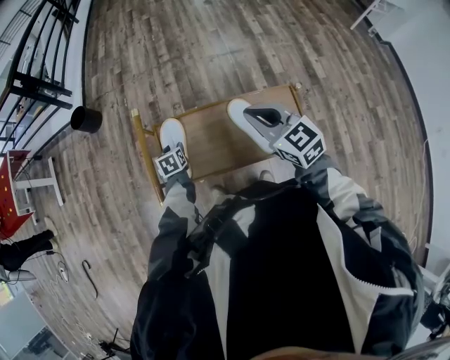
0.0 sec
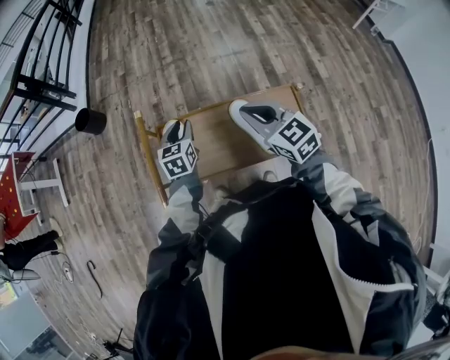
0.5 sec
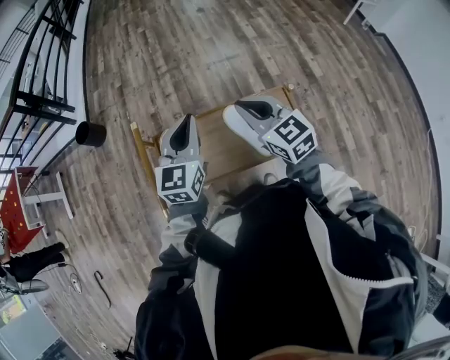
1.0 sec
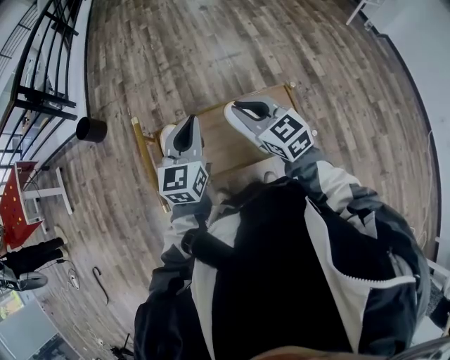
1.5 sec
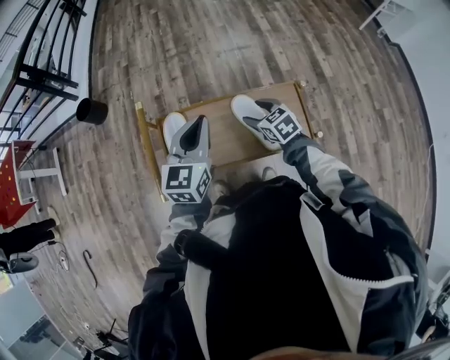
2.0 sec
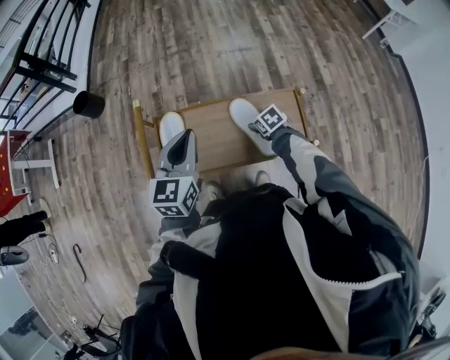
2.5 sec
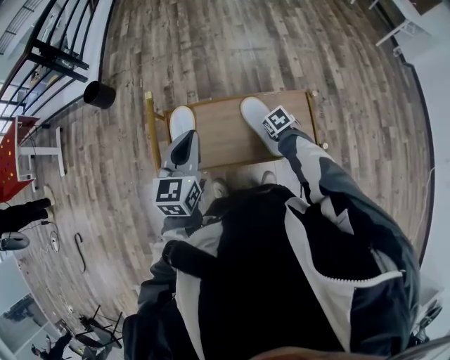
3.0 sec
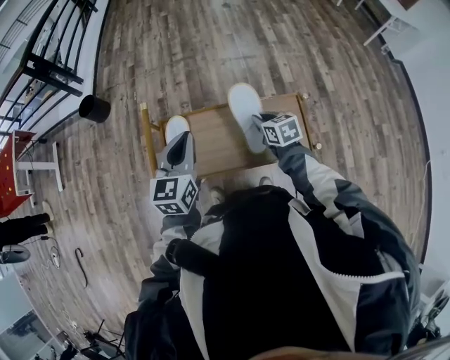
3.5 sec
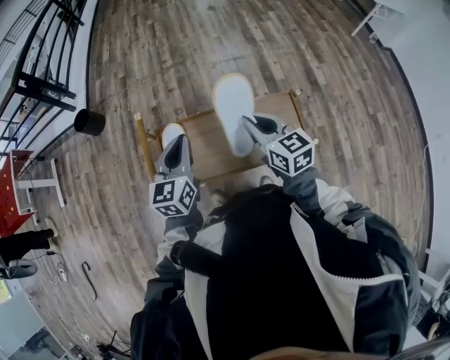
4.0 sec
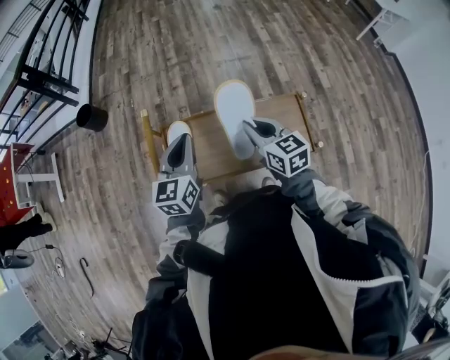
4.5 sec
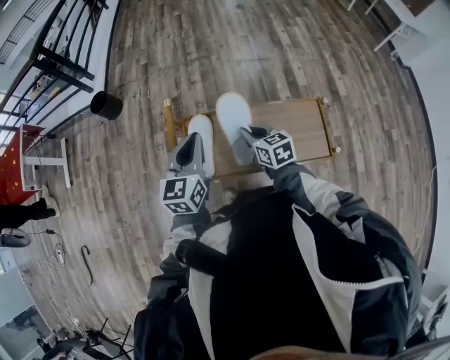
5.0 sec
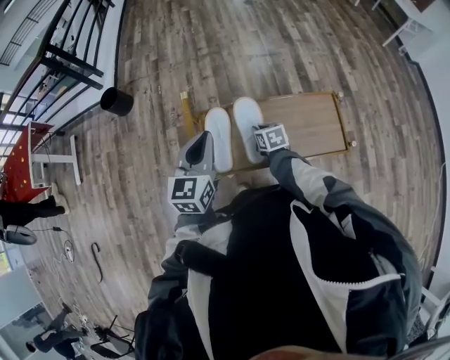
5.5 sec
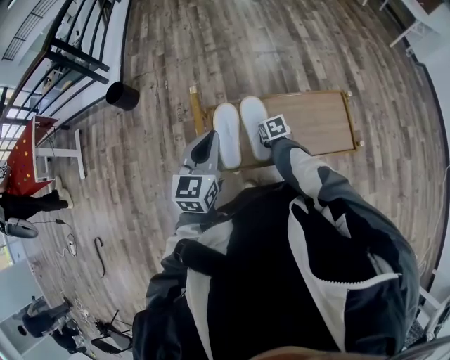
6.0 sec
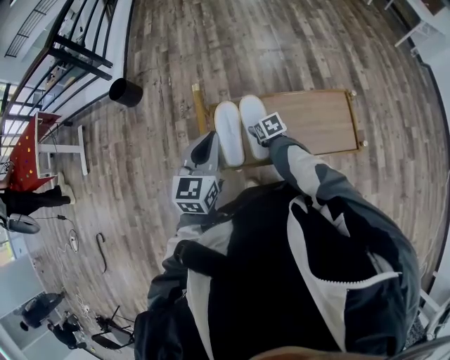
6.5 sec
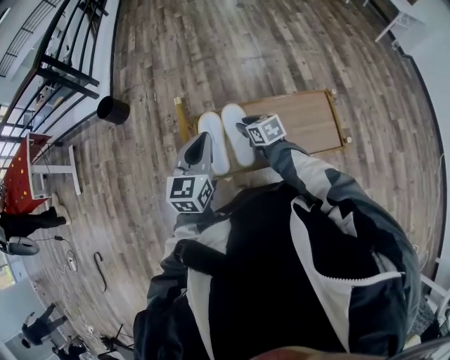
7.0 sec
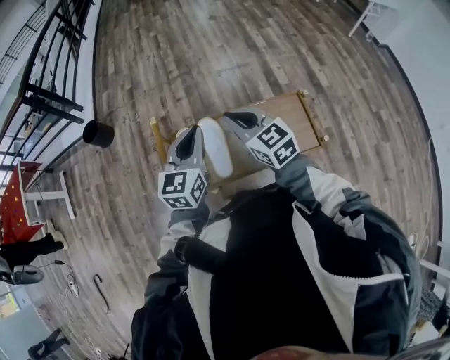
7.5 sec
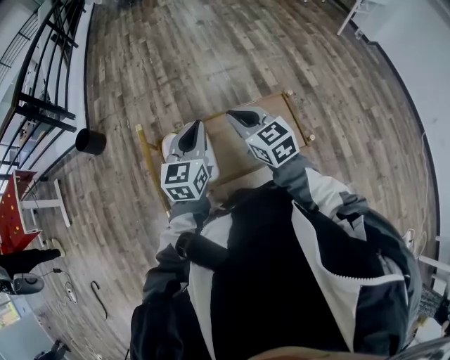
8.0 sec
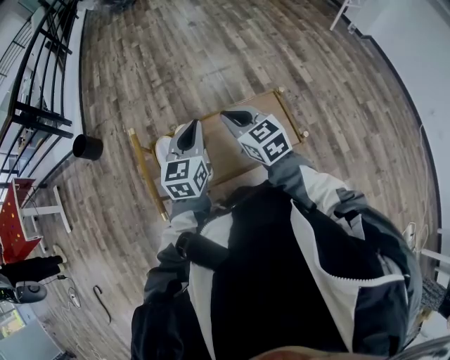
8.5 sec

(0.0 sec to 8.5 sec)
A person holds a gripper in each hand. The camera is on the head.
0.0 sec - 2.0 sec: The left gripper travels upward and to the right by about 35 cm, points its fingers some 40 degrees further upward, and closes its fingers; the right gripper moves downward, roughly 15 cm, swivels roughly 20 degrees, and opens.
2.0 sec - 4.0 sec: The right gripper goes about 15 cm upward, turns by approximately 30 degrees, and closes its fingers. The left gripper moves to the left, approximately 5 cm.
4.0 sec - 6.5 sec: The left gripper is displaced to the left by approximately 10 cm. Meanwhile the right gripper travels downward and to the left by some 35 cm, angles its fingers downward, by about 40 degrees, and opens.
6.5 sec - 8.5 sec: The left gripper goes about 20 cm to the right, while the right gripper is displaced upward and to the right by some 35 cm, tilts its fingers approximately 30 degrees upward, and closes its fingers.

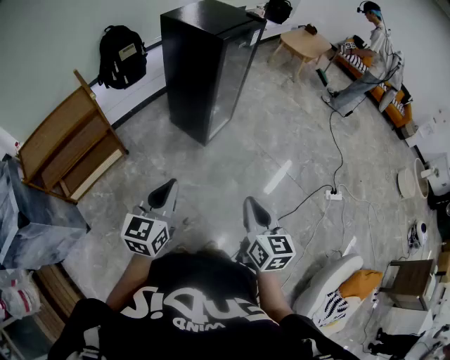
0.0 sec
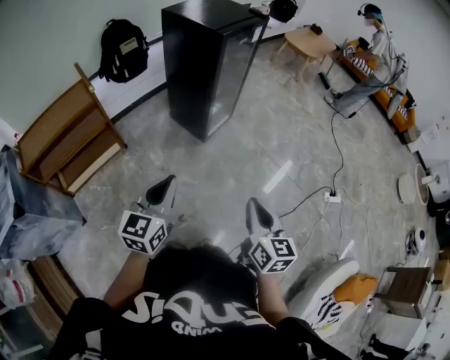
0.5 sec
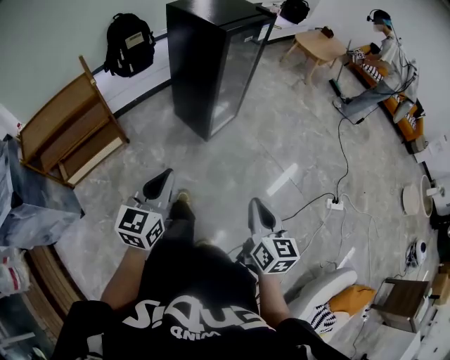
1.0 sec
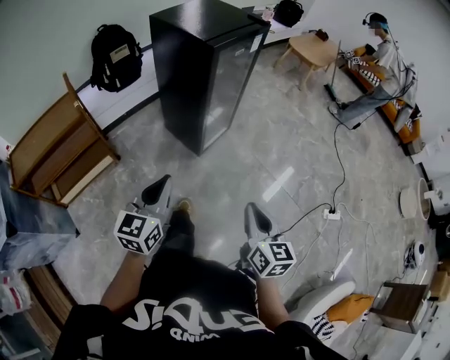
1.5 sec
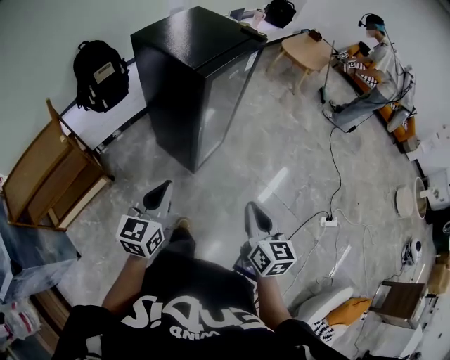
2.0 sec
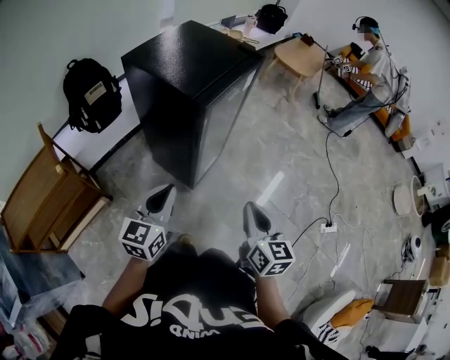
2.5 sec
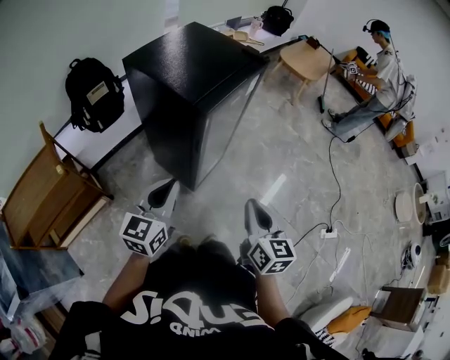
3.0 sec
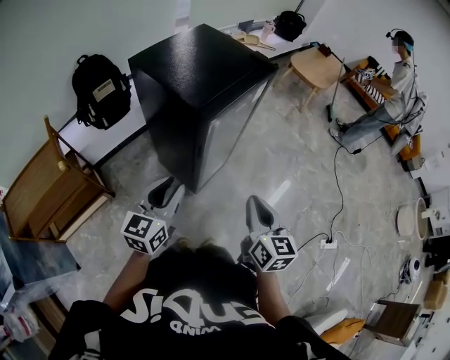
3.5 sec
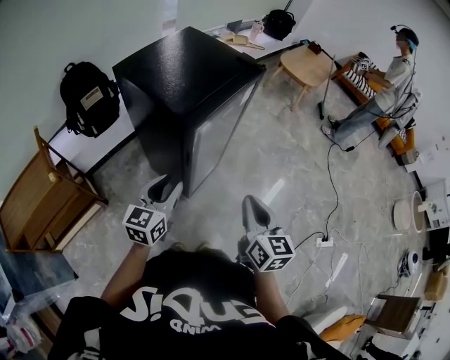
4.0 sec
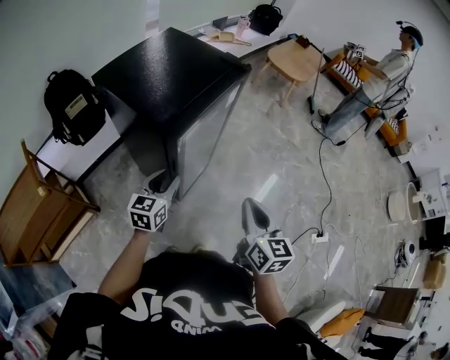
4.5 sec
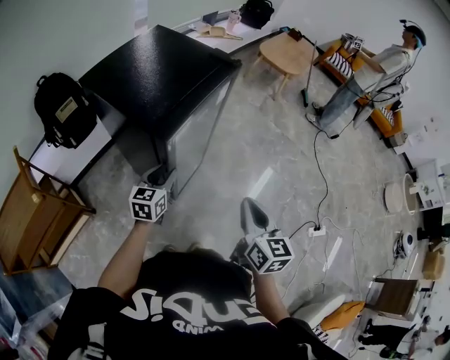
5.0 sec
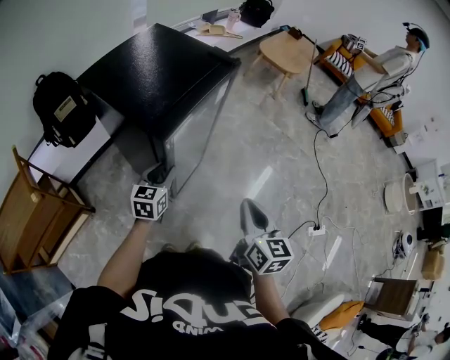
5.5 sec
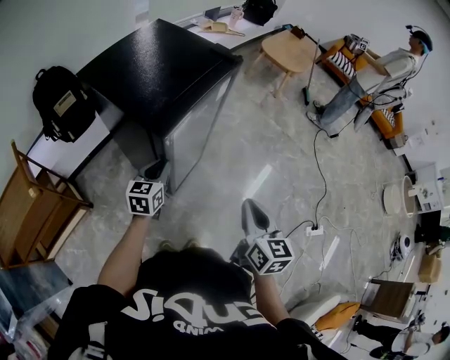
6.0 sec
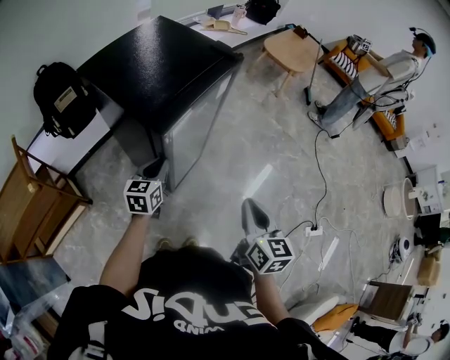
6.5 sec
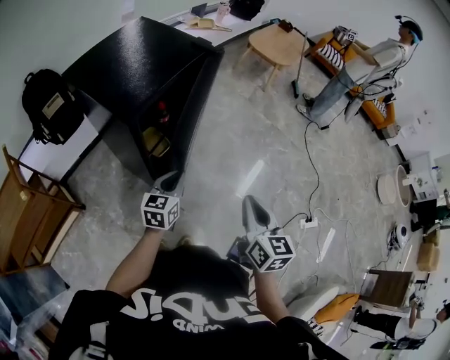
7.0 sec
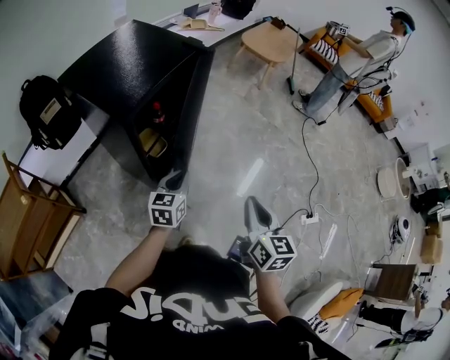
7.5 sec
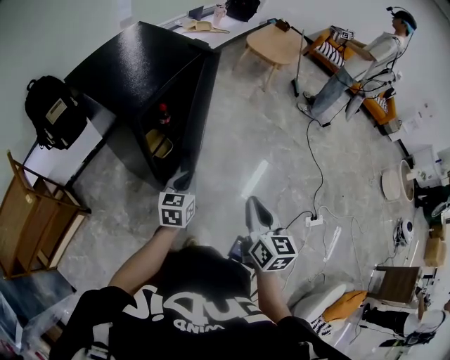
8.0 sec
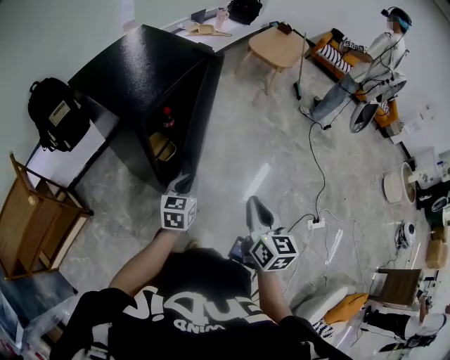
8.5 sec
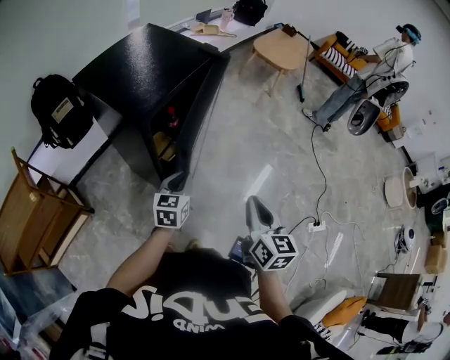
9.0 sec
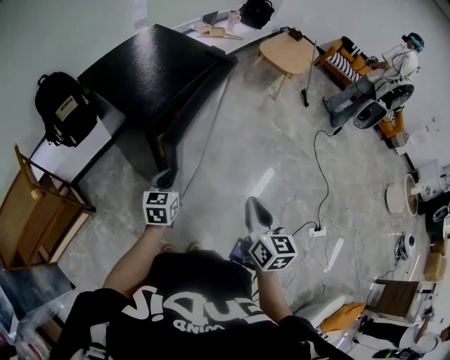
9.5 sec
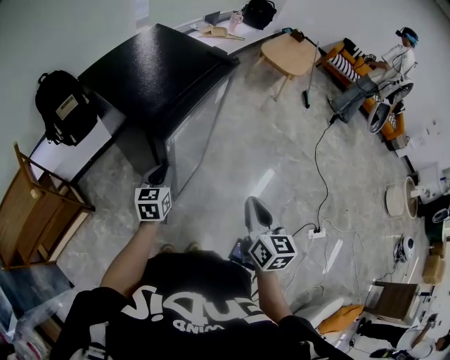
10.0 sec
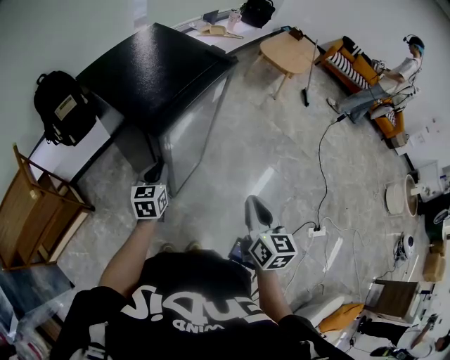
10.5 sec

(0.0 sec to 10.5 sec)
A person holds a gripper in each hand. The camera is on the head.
0.0 sec - 2.0 sec: The two grippers go some 30 cm forward.
2.0 sec - 4.0 sec: Both grippers move forward, approximately 20 cm. The left gripper opens its fingers.
4.0 sec - 6.5 sec: The left gripper moves forward and downward, about 15 cm, and closes its fingers; the right gripper goes some 5 cm to the right.
6.5 sec - 8.5 sec: The left gripper moves to the right, roughly 15 cm.
8.5 sec - 10.5 sec: The left gripper travels to the left by some 15 cm.

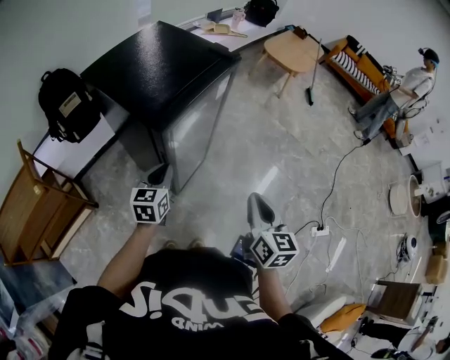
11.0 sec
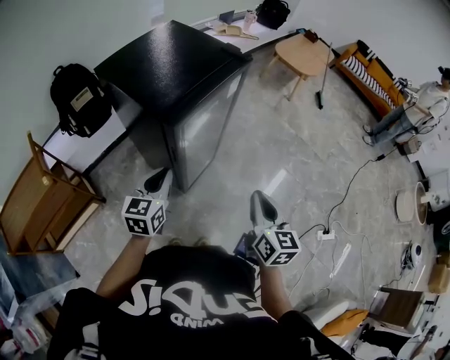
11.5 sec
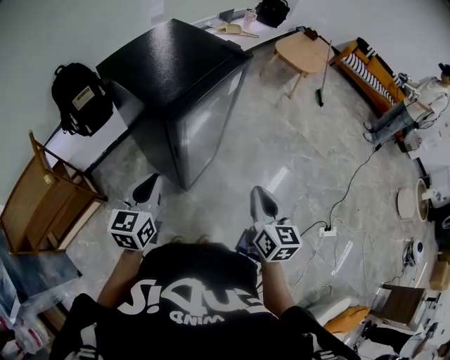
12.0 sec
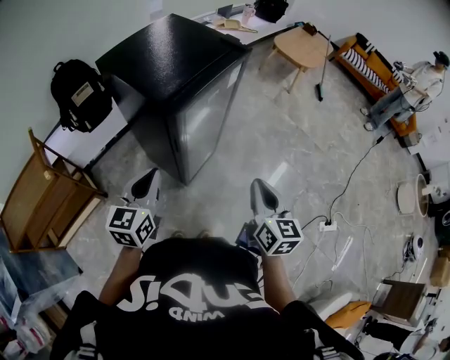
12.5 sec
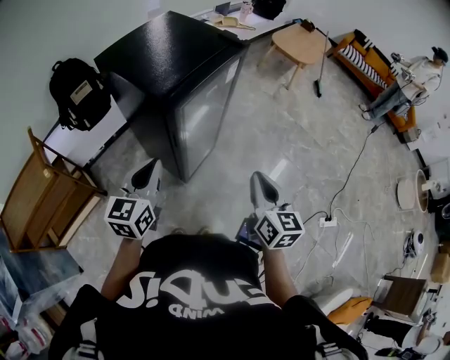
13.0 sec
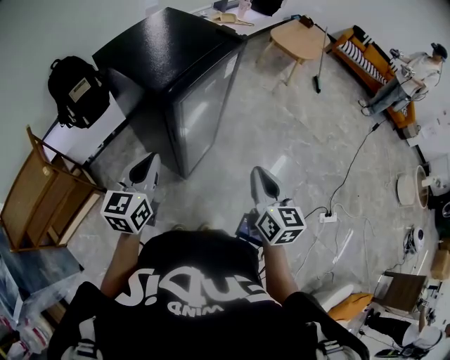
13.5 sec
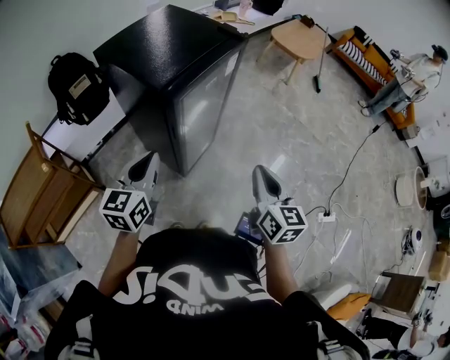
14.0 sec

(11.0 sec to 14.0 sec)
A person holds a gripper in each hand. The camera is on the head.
11.0 sec - 12.5 sec: The left gripper travels backward and upward by roughly 15 cm.
12.5 sec - 14.0 sec: The grippers stay close to where they were, moving slightly.

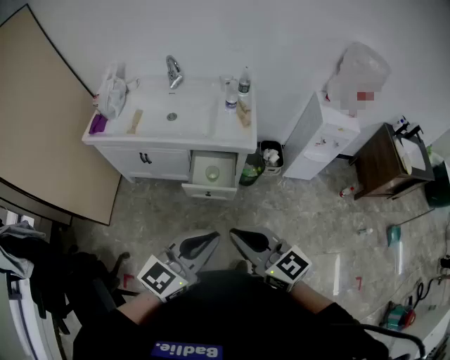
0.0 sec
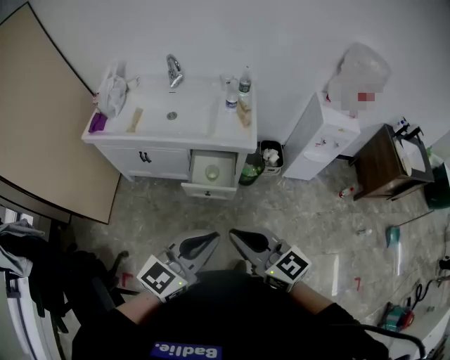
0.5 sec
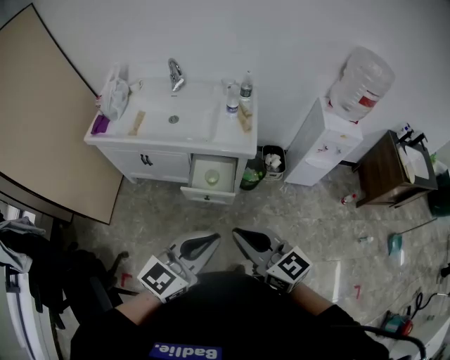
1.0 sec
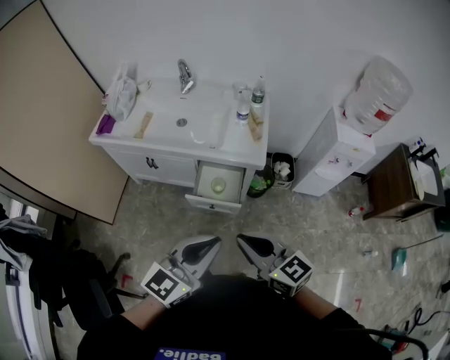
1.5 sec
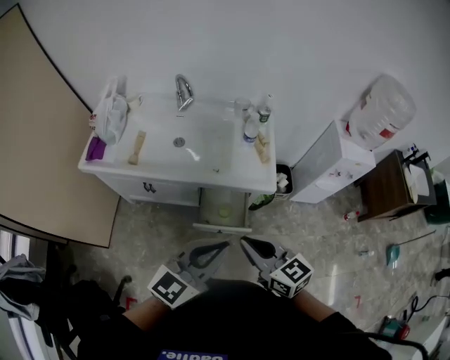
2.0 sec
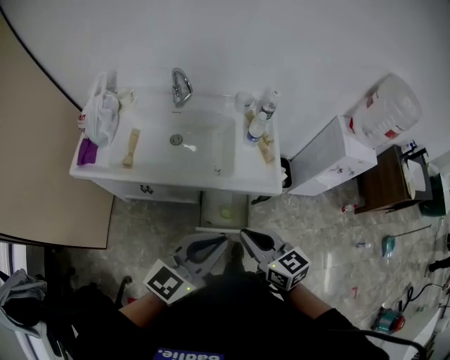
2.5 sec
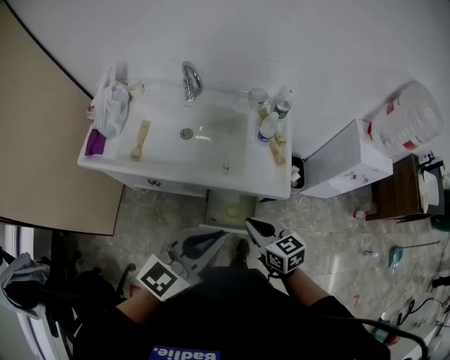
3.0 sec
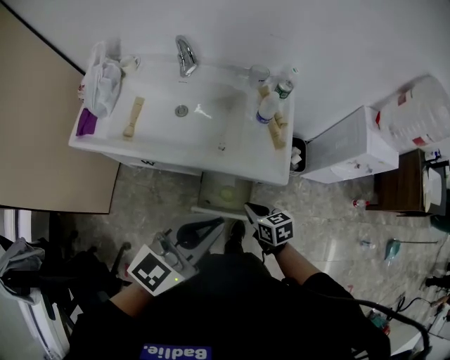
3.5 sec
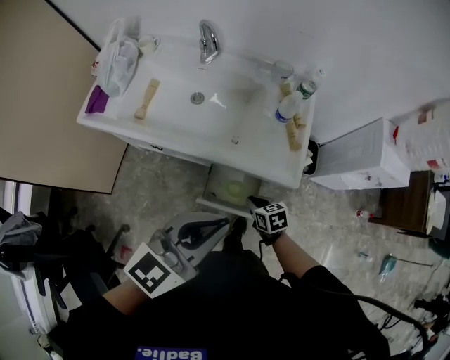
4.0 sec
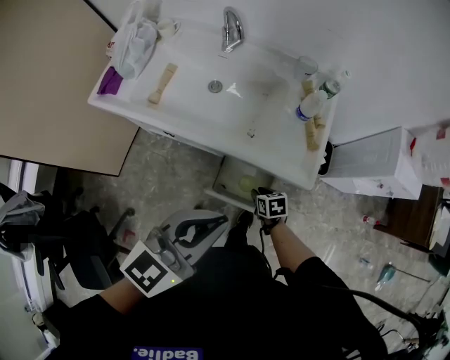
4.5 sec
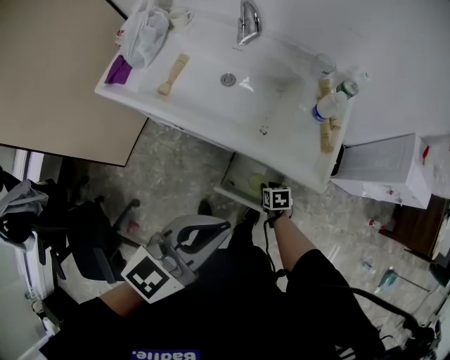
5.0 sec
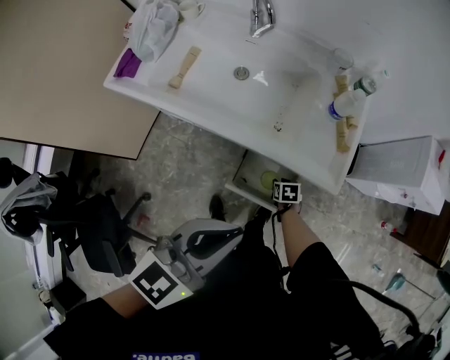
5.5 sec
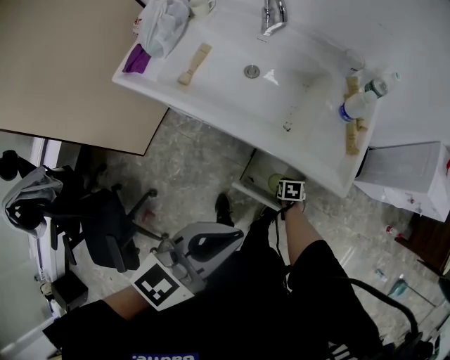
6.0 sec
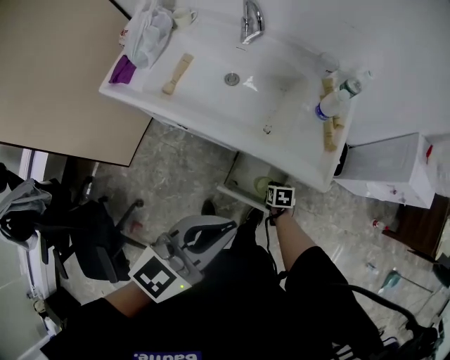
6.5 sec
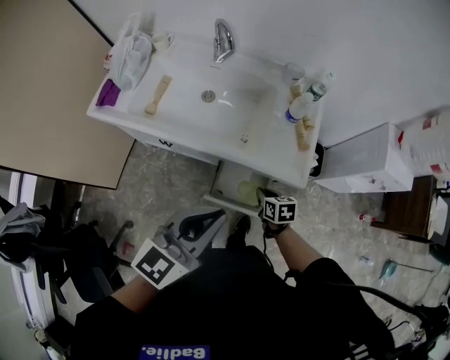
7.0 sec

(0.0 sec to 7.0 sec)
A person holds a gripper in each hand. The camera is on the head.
0.0 sec - 2.0 sec: Both grippers travel together forward, approximately 20 cm.
2.0 sec - 3.5 sec: The left gripper goes about 10 cm forward, while the right gripper moves downward and forward, some 25 cm, and swivels some 30 degrees.
3.5 sec - 5.0 sec: The right gripper goes approximately 20 cm downward, turns by about 20 degrees, and opens its fingers. Meanwhile the left gripper shifts by about 5 cm.
5.0 sec - 7.0 sec: The right gripper moves upward, some 15 cm, and closes its fingers.
